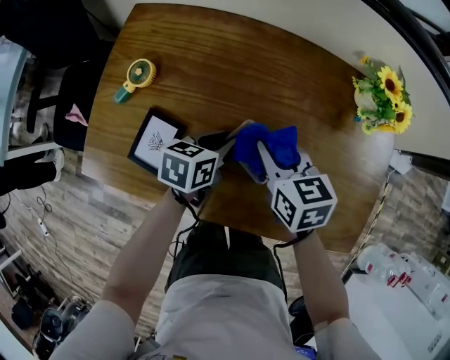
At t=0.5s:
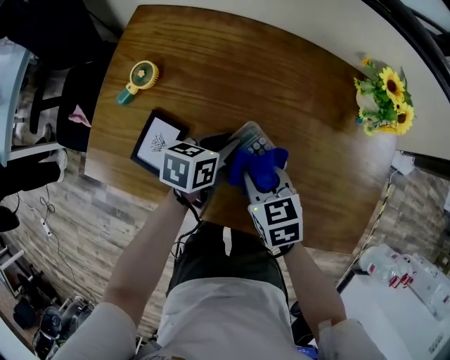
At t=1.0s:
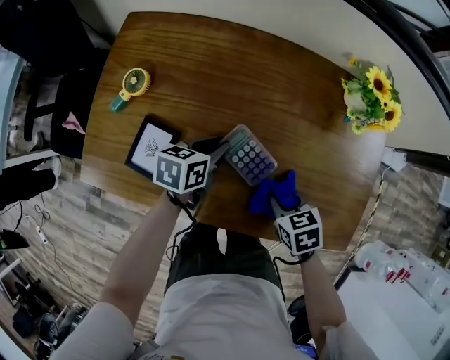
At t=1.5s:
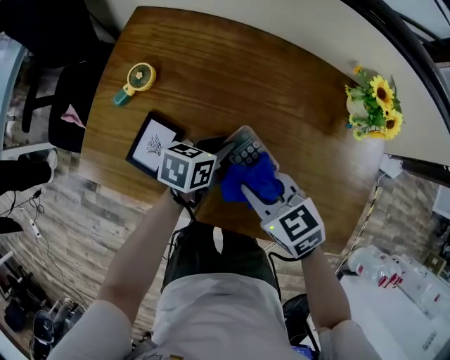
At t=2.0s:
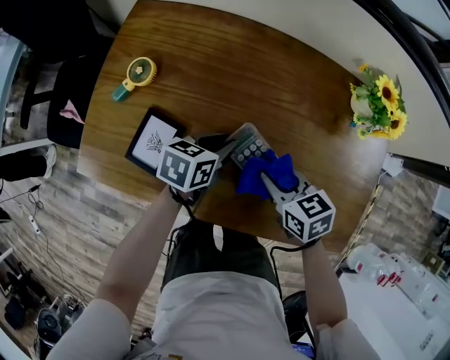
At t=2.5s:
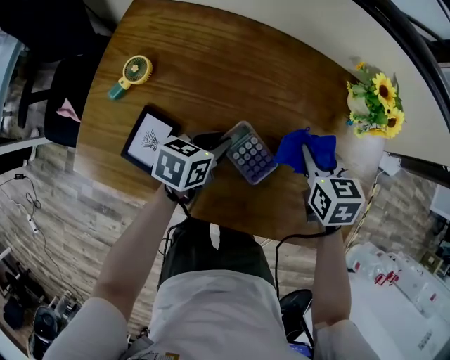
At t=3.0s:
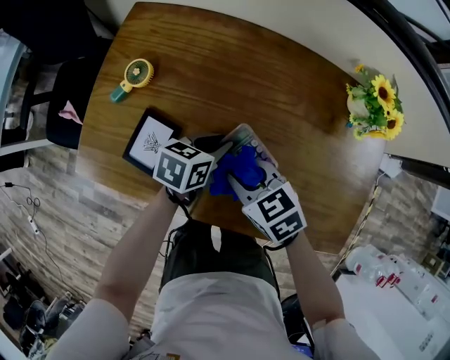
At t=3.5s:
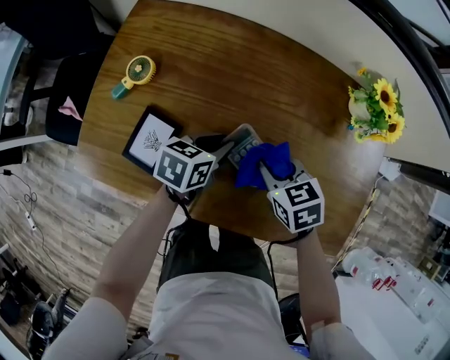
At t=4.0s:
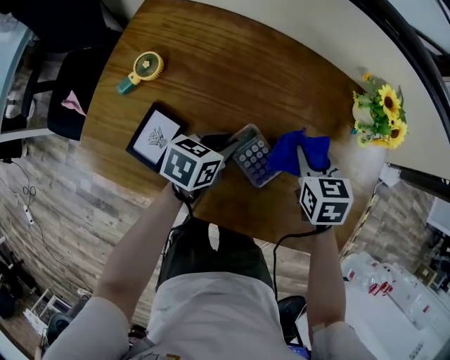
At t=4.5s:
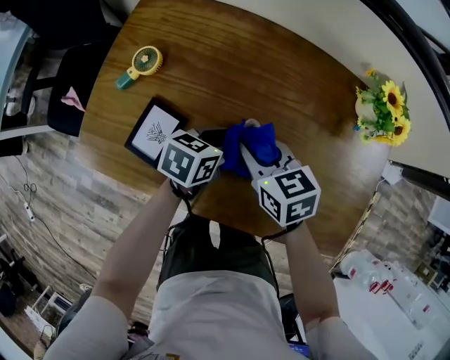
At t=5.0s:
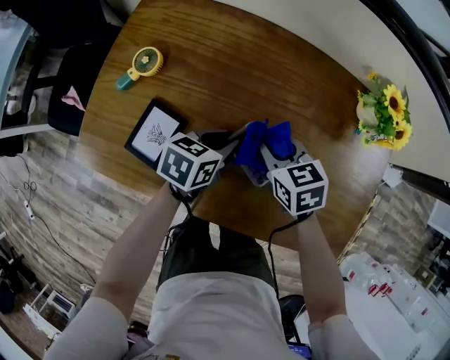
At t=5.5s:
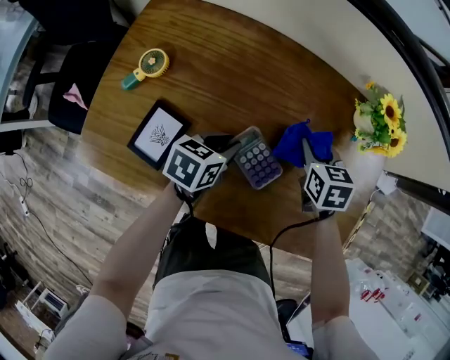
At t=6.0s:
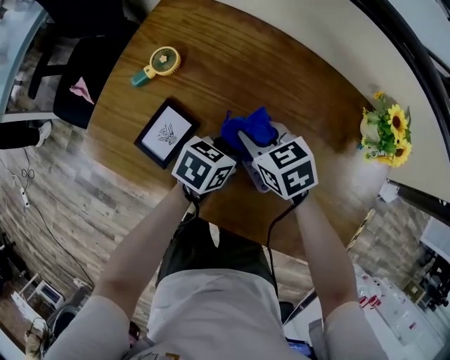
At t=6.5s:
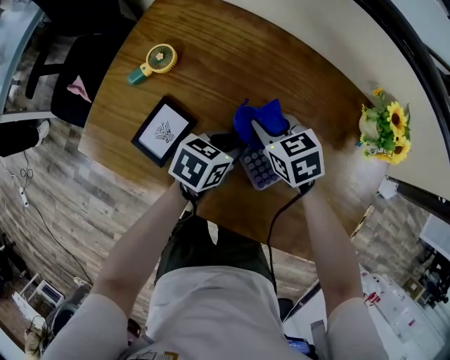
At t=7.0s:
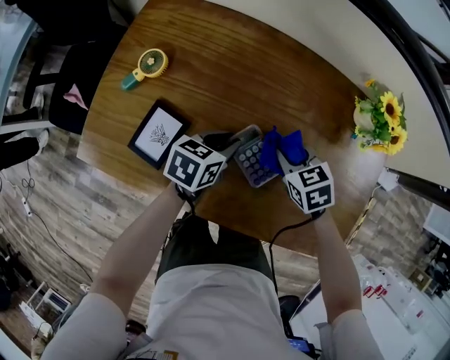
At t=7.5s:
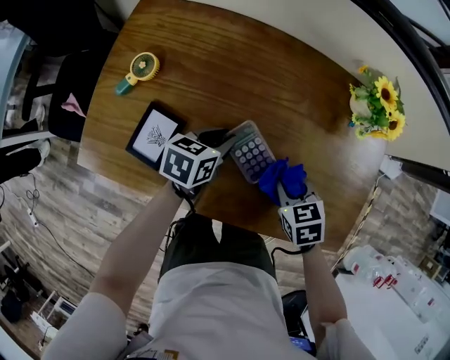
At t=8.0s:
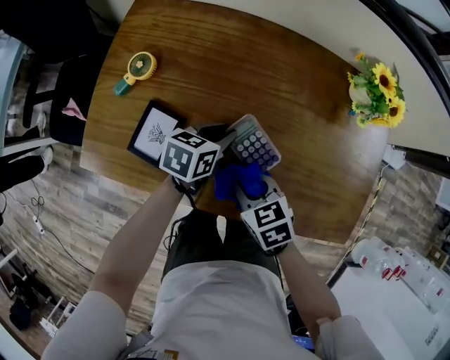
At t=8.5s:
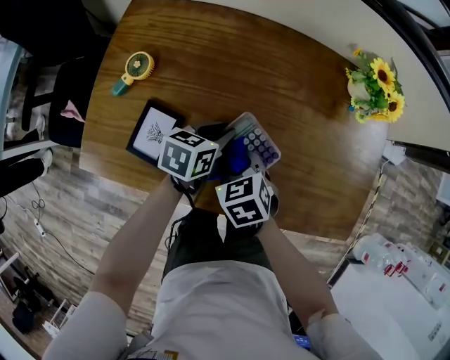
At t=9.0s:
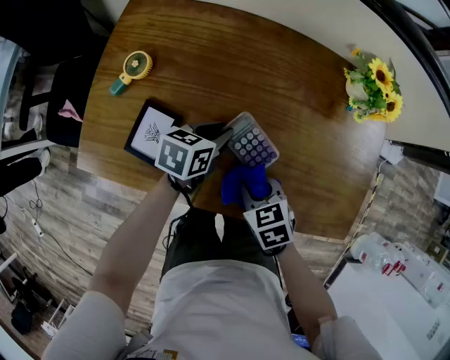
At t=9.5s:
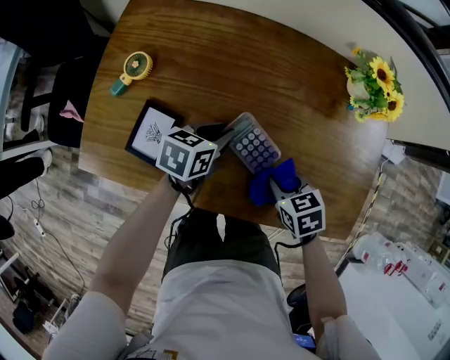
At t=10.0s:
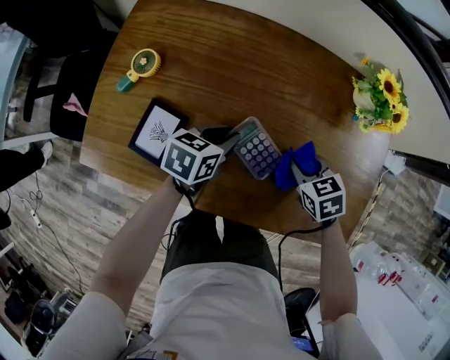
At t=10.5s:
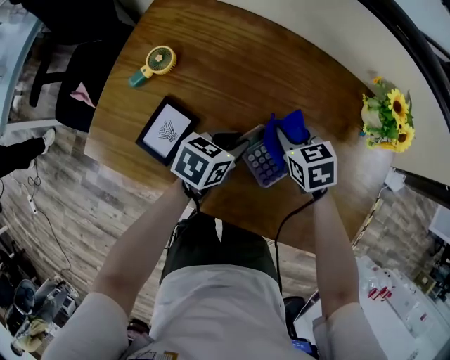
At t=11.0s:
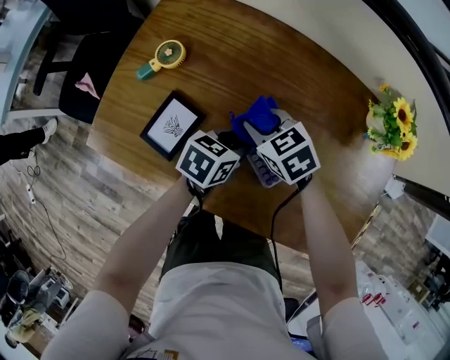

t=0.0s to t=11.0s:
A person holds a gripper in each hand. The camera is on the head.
t=0.0s to t=2.0s: The right gripper travels backward by about 5 cm.
t=2.0s to t=3.5s: The right gripper swings left and right, roughly 15 cm each way, with 2 reversals.
t=3.5s to t=5.5s: The right gripper swings left and right, about 15 cm each way, with 2 reversals.
t=5.5s to t=7.5s: The right gripper travels backward by roughly 15 cm, and reaches approximately 20 cm to the left, then returns.
t=7.5s to t=9.0s: The right gripper is displaced to the left and backward by approximately 10 cm.
t=9.0s to t=11.0s: The right gripper shifts about 20 cm forward and to the left, and changes its angle by roughly 20 degrees.

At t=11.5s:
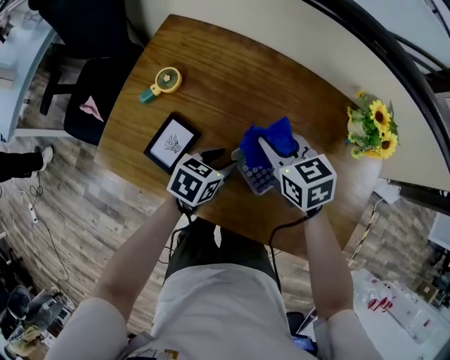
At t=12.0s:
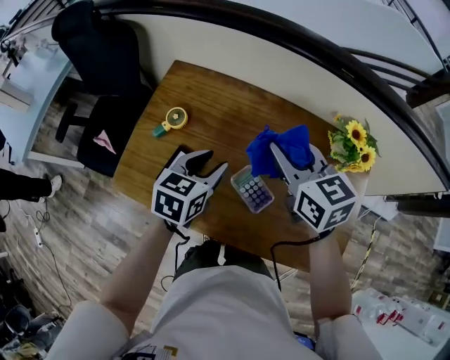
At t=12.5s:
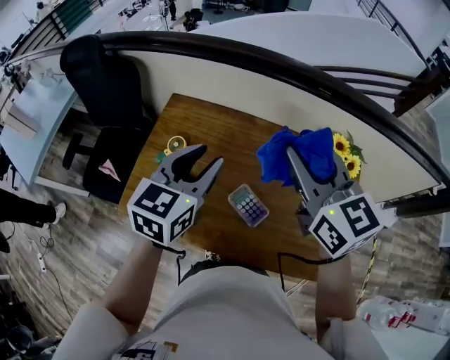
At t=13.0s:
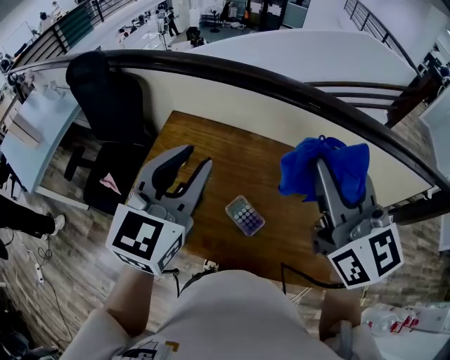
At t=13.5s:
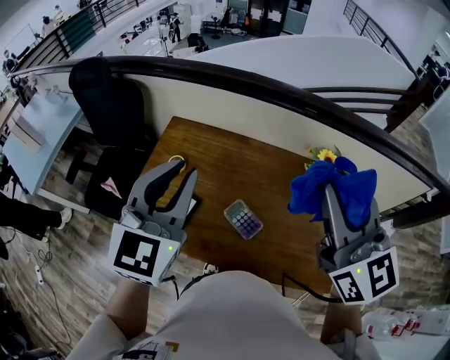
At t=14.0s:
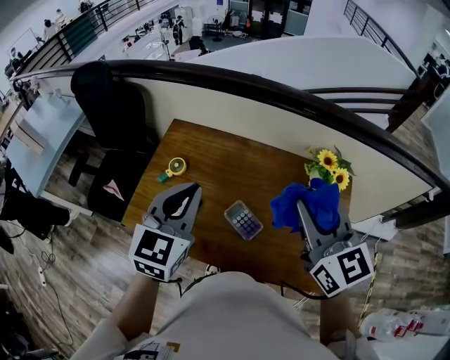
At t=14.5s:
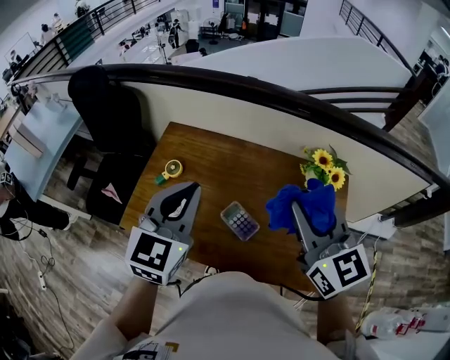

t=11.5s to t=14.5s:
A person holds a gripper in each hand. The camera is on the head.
t=11.5s to t=13.0s: The grippers both shift upward by approximately 40 cm. The right gripper tilts its fingers roughly 40 degrees upward. The left gripper tilts its fingers roughly 40 degrees upward.
t=13.0s to t=14.5s: The right gripper shifts roughly 10 cm downward; the left gripper shifts about 5 cm downward.

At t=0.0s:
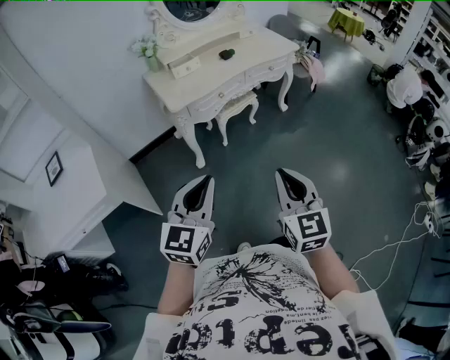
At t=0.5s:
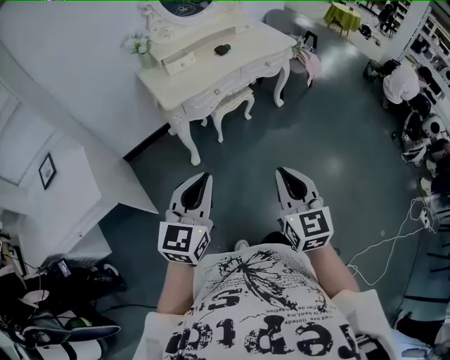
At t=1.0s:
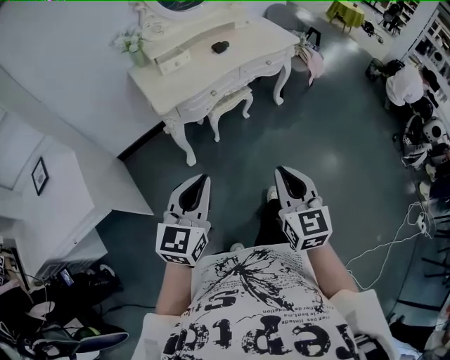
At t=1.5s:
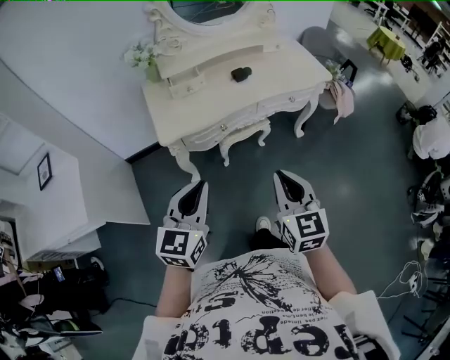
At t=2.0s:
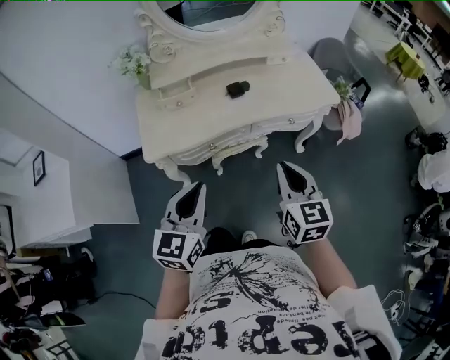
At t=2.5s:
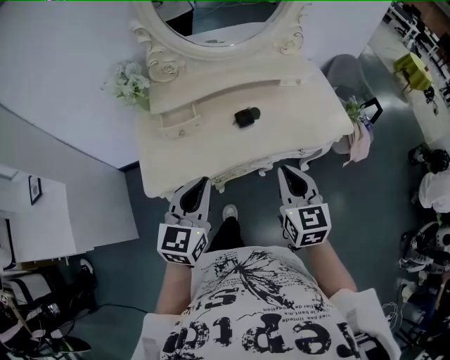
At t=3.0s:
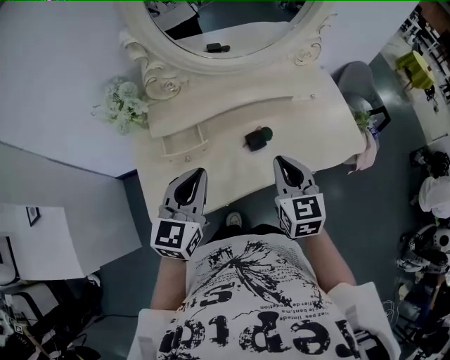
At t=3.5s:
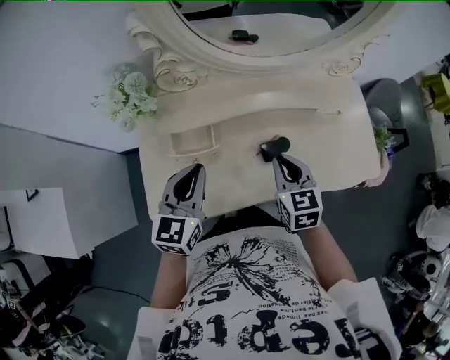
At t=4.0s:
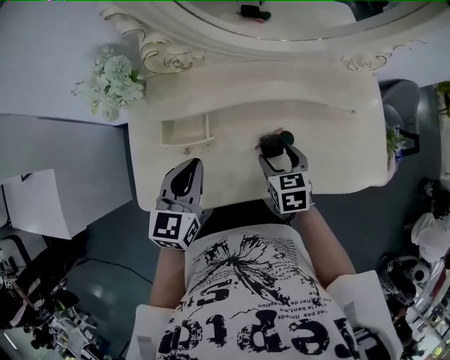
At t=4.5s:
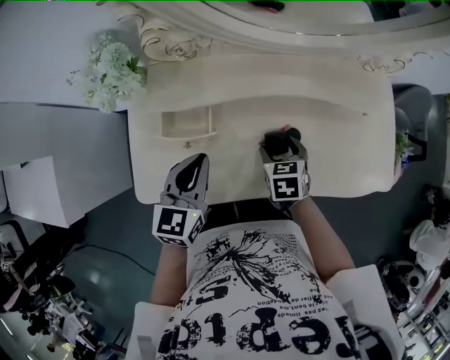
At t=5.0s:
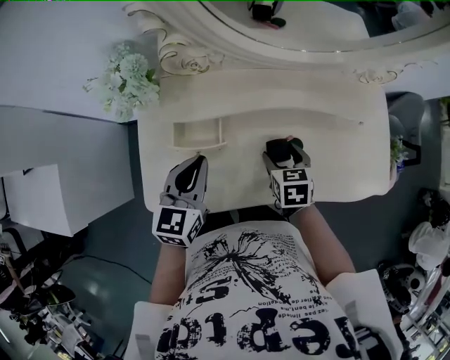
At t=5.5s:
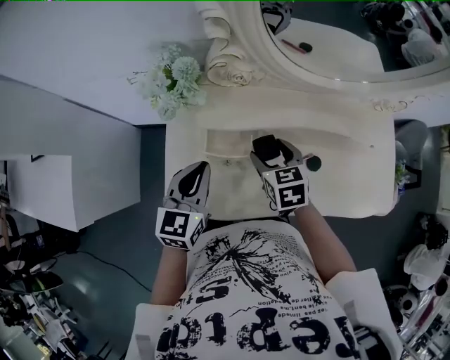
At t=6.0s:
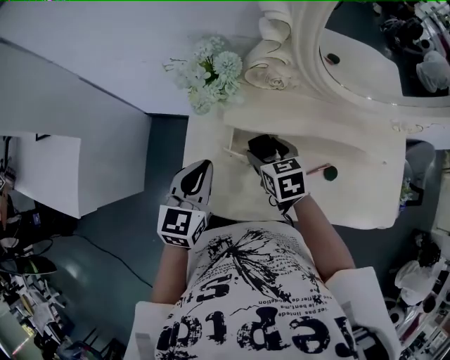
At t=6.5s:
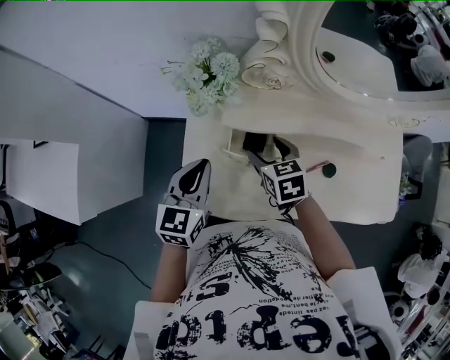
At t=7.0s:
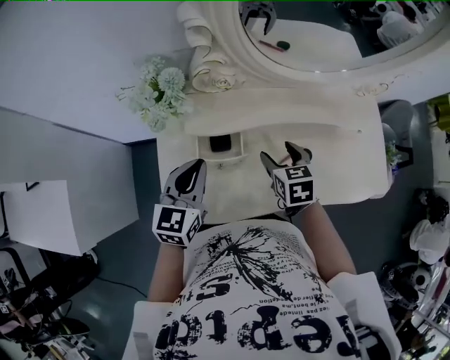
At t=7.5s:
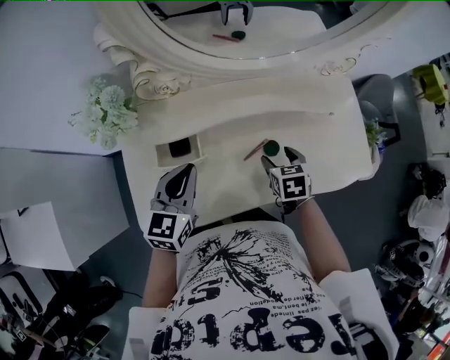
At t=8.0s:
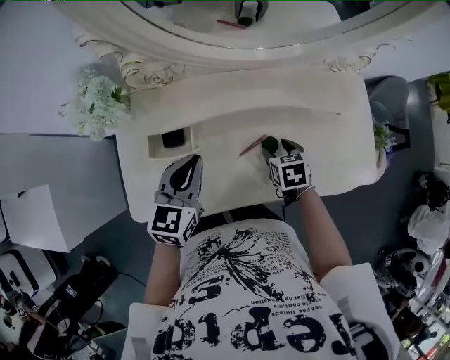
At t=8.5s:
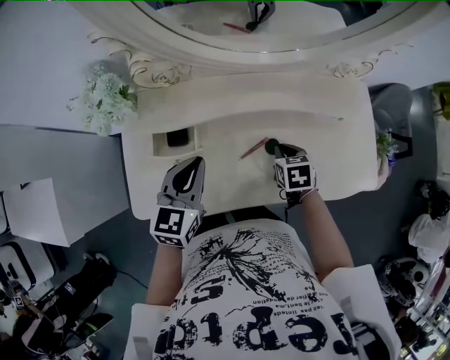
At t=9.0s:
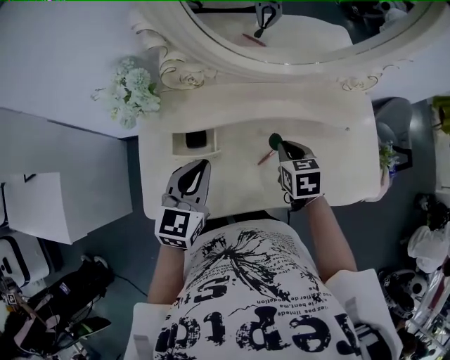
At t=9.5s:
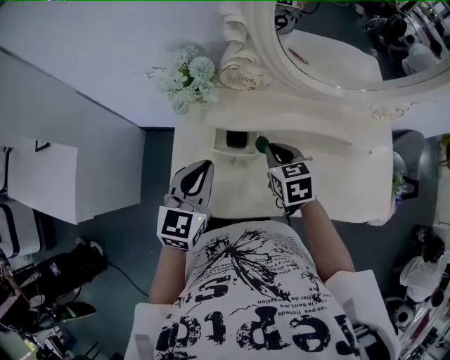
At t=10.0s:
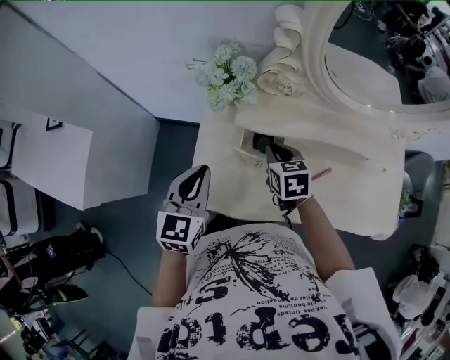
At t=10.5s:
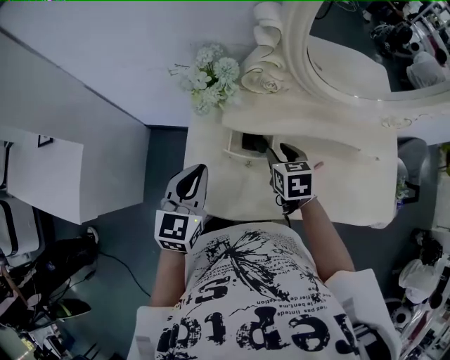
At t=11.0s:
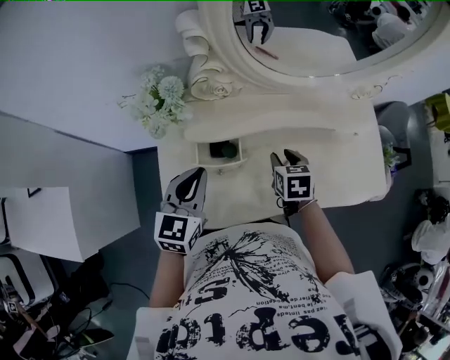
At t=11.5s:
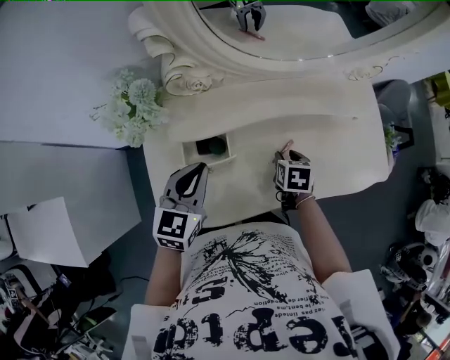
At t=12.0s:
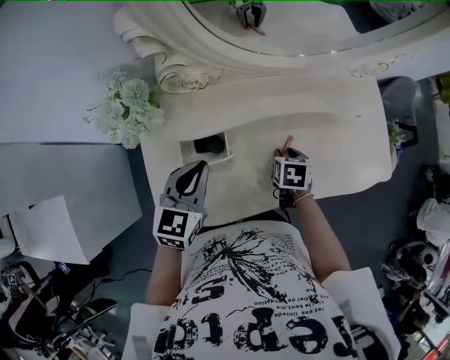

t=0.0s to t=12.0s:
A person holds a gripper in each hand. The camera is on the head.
t=0.0s to t=2.0s: Both grippers are carried forward, about 50 cm. The left gripper turns by roughly 20 degrees.
t=2.0s to t=4.0s: The right gripper goes approximately 50 cm forward and downward, tilts its fingers some 30 degrees downward, and opens its fingers. The left gripper goes roughly 40 cm forward.
t=4.0s to t=6.0s: The two grippers go some 20 cm to the left.
t=6.0s to t=8.0s: The right gripper ends up roughly 30 cm from where it was, and changes its angle by some 20 degrees; the left gripper ends up some 20 cm from where it was.
t=8.0s to t=10.0s: Both grippers travel together to the left, some 25 cm. The right gripper rotates roughly 20 degrees, and closes up.
t=10.0s to t=12.0s: The left gripper changes place by approximately 15 cm, and rotates about 20 degrees. Meanwhile the right gripper moves about 25 cm, swivels about 40 degrees, and opens up.
